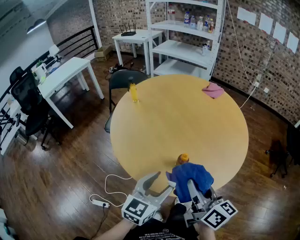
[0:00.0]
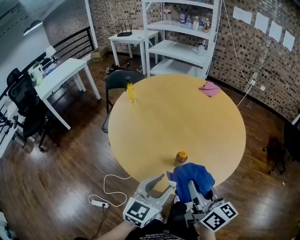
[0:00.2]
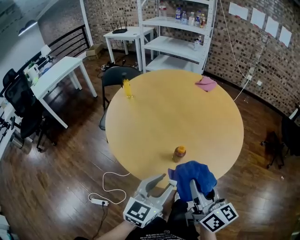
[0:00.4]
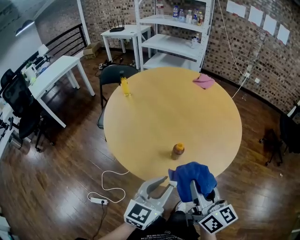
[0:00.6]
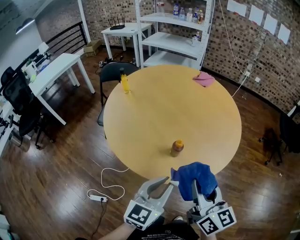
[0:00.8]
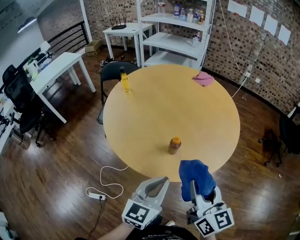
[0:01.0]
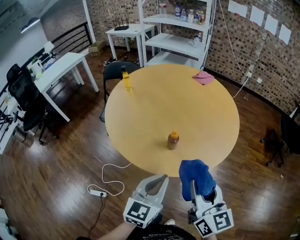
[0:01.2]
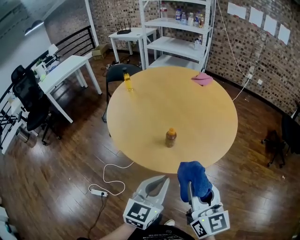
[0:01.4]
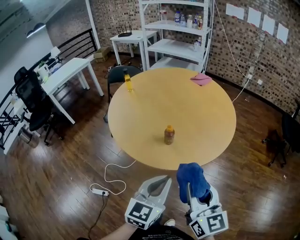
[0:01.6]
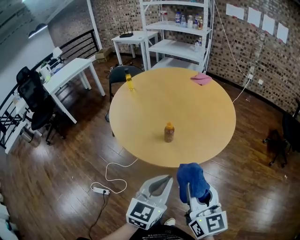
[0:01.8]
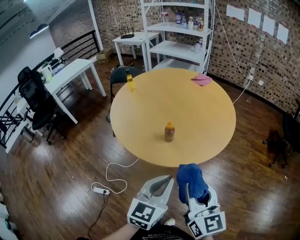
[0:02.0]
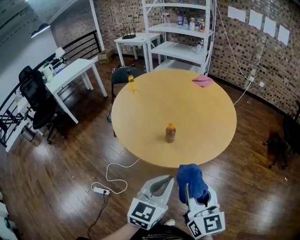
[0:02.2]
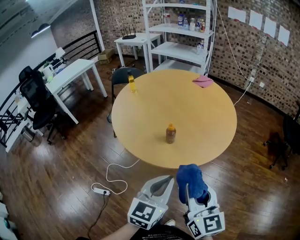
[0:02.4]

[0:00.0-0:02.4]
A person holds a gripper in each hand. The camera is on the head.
0:00.0 to 0:01.2: The two grippers go some 10 cm backward and to the right. The right gripper turns by roughly 30 degrees; the left gripper closes up.
0:01.2 to 0:02.4: The right gripper is displaced backward by some 10 cm; the left gripper heads backward and to the right, covering about 10 cm.

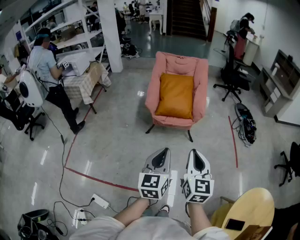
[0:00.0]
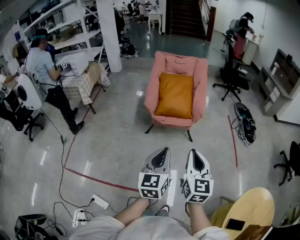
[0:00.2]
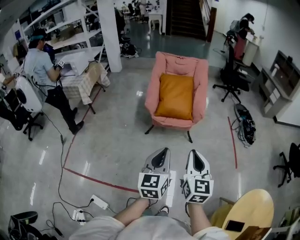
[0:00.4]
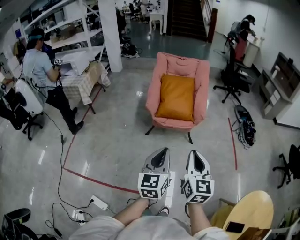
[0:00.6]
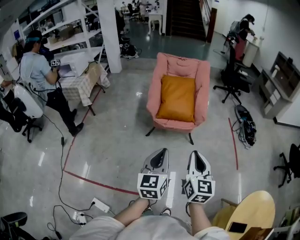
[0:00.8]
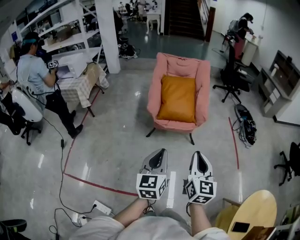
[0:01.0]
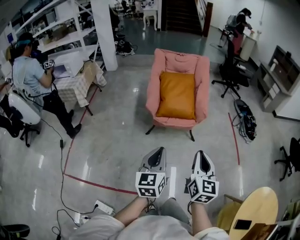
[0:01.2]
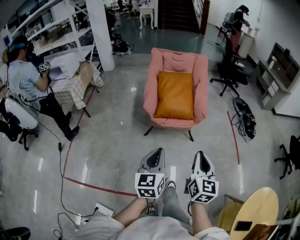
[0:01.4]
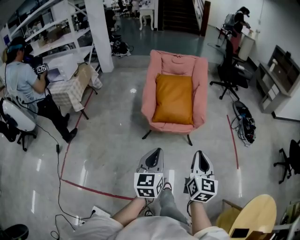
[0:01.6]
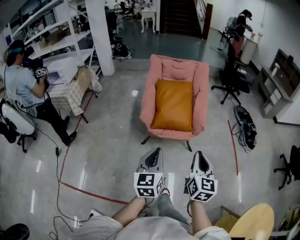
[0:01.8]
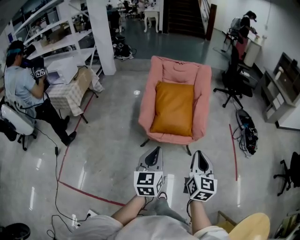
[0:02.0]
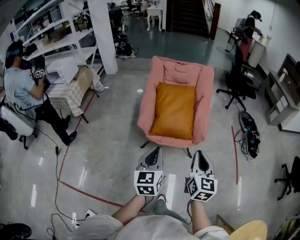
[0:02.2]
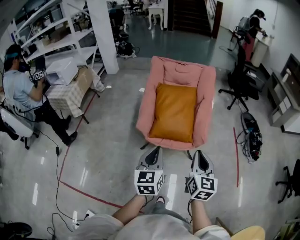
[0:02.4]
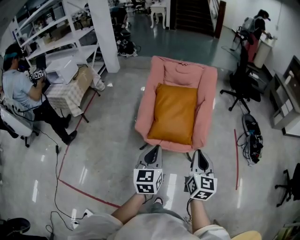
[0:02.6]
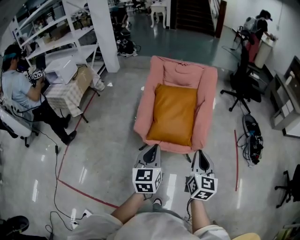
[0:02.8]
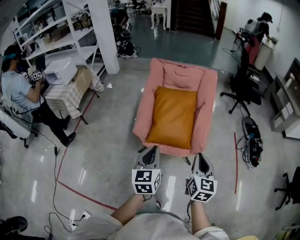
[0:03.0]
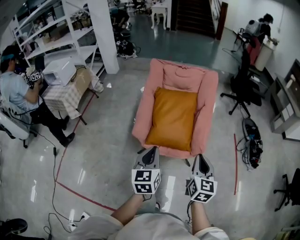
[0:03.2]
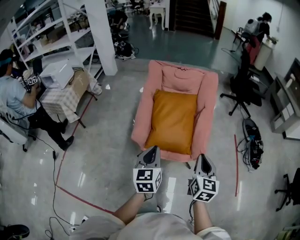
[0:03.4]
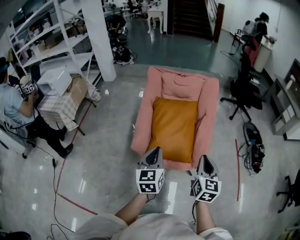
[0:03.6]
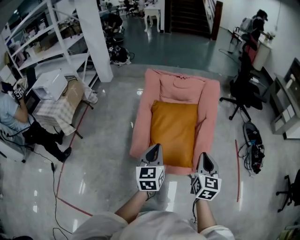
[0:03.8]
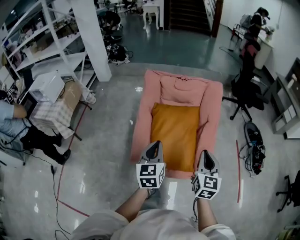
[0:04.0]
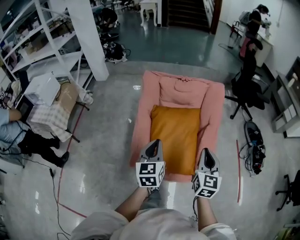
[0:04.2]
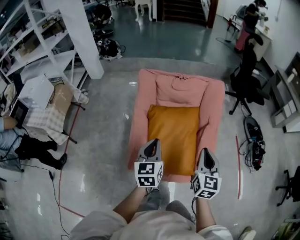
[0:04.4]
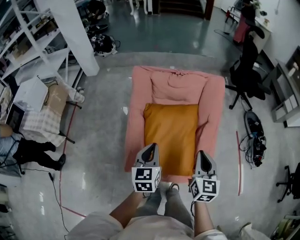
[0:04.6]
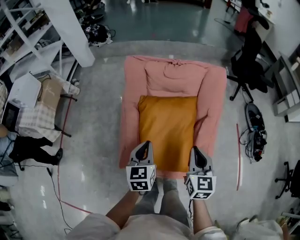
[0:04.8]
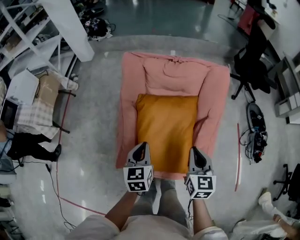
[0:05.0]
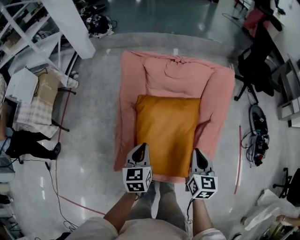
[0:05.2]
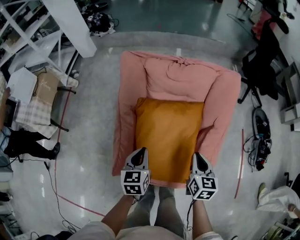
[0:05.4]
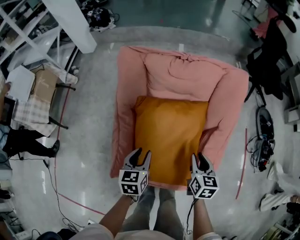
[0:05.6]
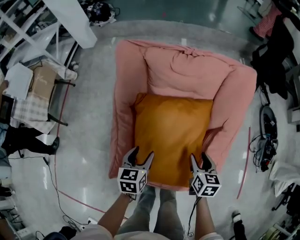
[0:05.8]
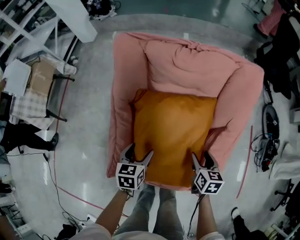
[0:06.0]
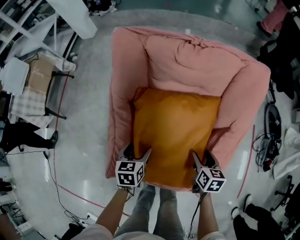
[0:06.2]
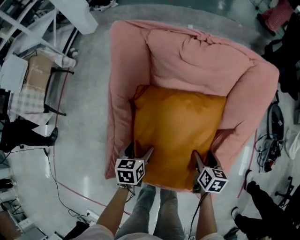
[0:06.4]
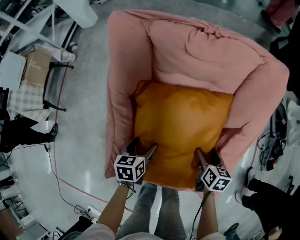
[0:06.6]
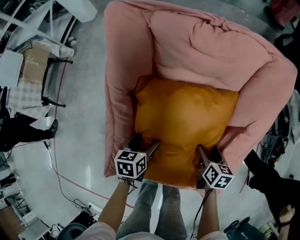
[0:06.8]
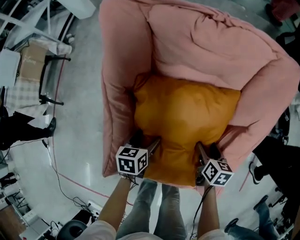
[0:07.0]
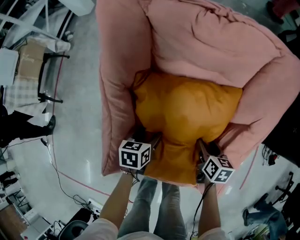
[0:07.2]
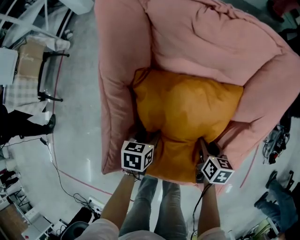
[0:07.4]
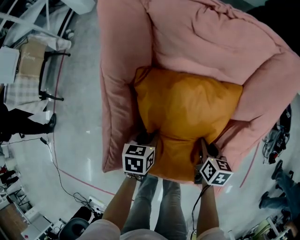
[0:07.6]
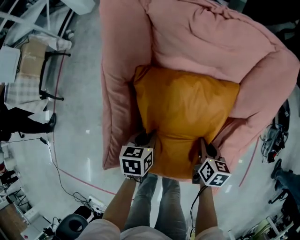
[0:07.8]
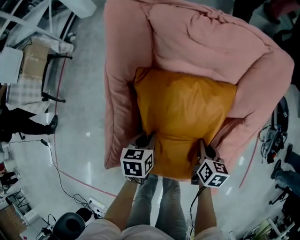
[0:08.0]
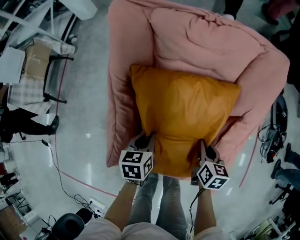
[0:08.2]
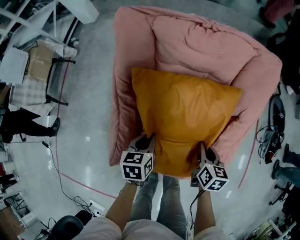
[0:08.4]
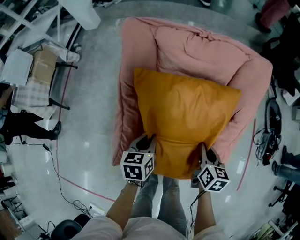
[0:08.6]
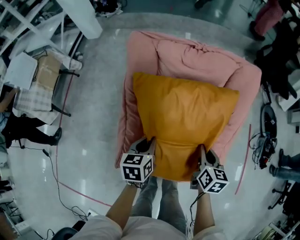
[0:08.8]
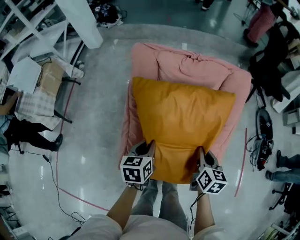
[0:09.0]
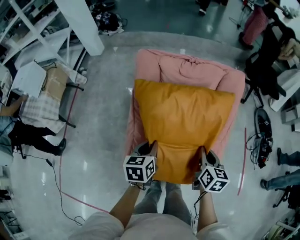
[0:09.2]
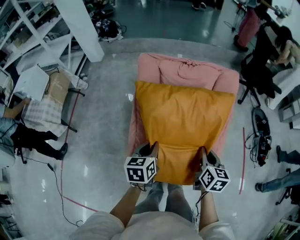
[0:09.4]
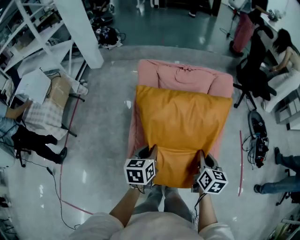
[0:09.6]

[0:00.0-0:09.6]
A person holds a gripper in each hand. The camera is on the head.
0:00.0 to 0:01.6: The left gripper shifts some 15 cm forward and to the left. The right gripper heads forward, covering some 15 cm.
0:01.6 to 0:03.2: The grippers both shift forward by roughly 30 cm.
0:03.2 to 0:04.8: Both grippers travel together forward, roughly 35 cm.
0:04.8 to 0:06.4: The two grippers go approximately 30 cm downward. The right gripper changes its angle by approximately 40 degrees, and opens its fingers. The left gripper changes its angle by some 30 degrees, and opens up.
0:06.4 to 0:08.0: The right gripper closes its fingers, while the left gripper reaches some 10 cm downward, then returns, and closes its fingers.
0:08.0 to 0:09.6: Both grippers move upward and backward, approximately 30 cm. The right gripper rotates some 20 degrees.

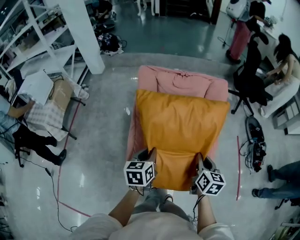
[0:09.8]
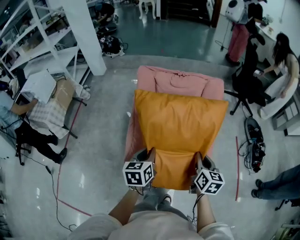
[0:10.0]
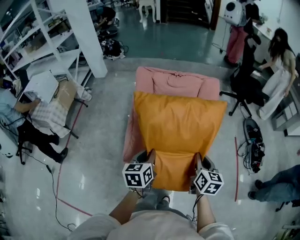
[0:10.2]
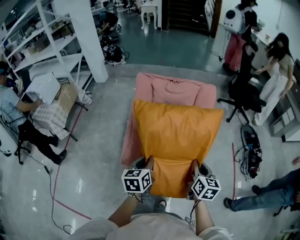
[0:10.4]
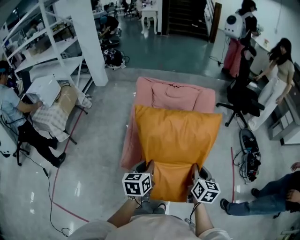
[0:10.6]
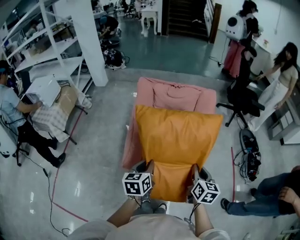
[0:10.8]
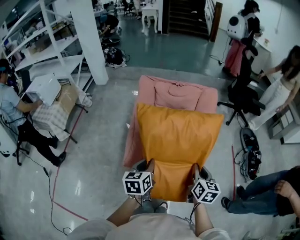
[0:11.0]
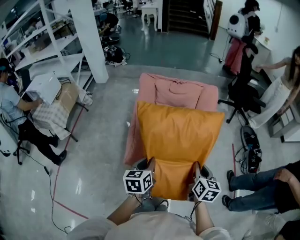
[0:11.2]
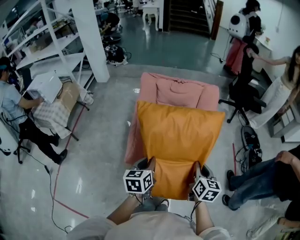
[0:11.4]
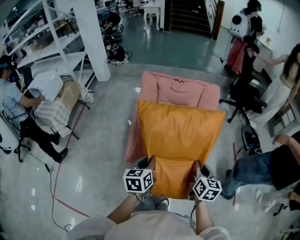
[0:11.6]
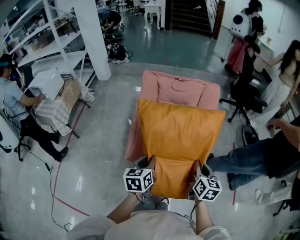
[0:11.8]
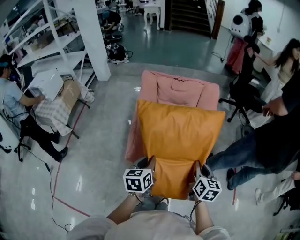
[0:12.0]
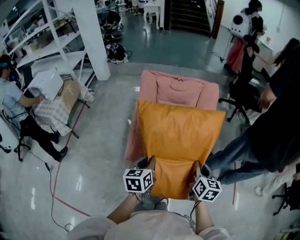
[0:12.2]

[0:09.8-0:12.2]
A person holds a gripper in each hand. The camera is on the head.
0:09.8 to 0:11.0: The two grippers go about 10 cm backward.
0:11.0 to 0:12.2: The grippers stay close to where they were, moving slightly.

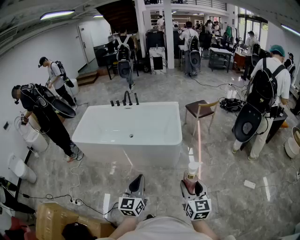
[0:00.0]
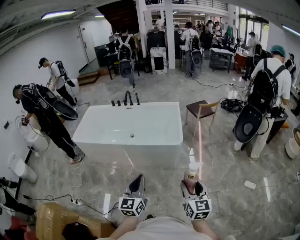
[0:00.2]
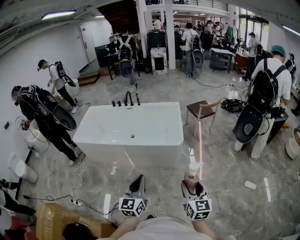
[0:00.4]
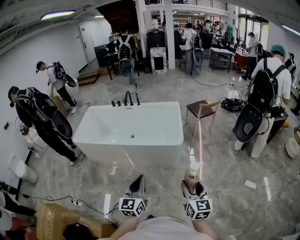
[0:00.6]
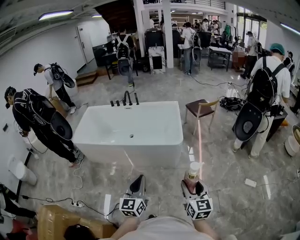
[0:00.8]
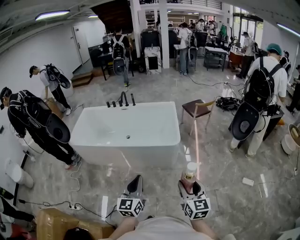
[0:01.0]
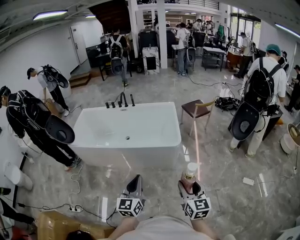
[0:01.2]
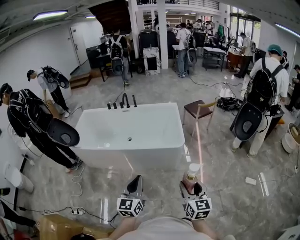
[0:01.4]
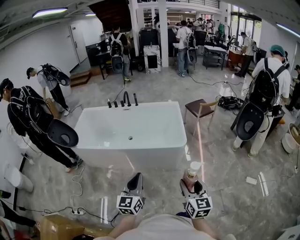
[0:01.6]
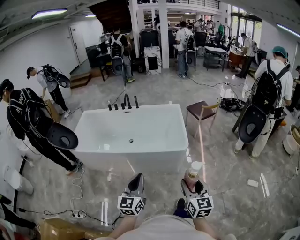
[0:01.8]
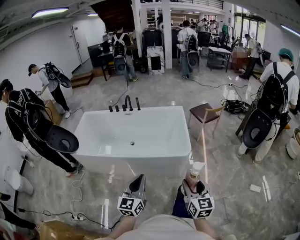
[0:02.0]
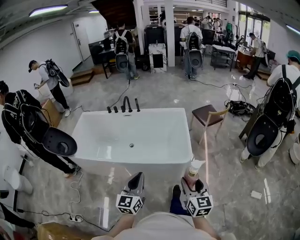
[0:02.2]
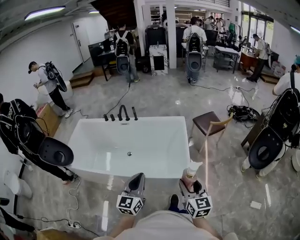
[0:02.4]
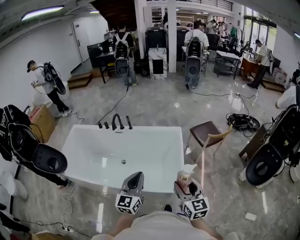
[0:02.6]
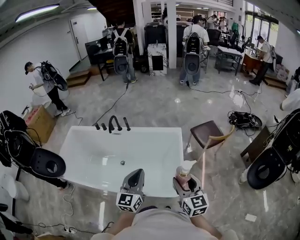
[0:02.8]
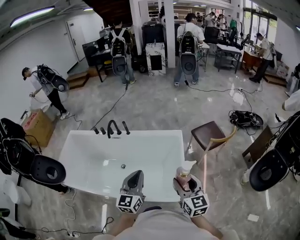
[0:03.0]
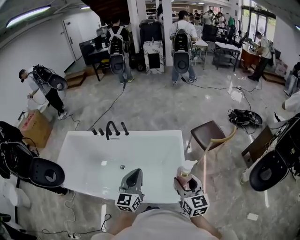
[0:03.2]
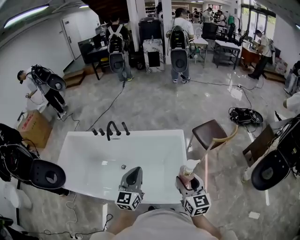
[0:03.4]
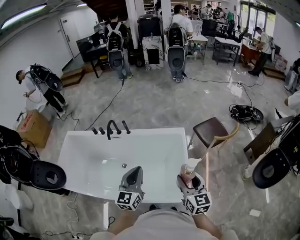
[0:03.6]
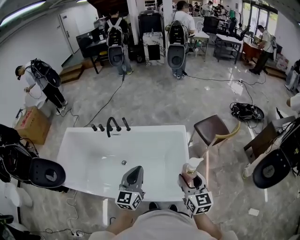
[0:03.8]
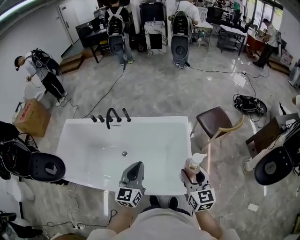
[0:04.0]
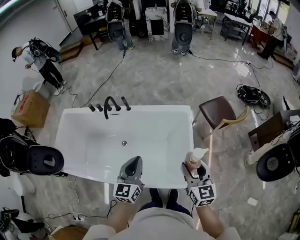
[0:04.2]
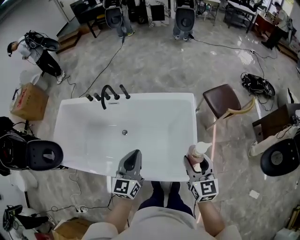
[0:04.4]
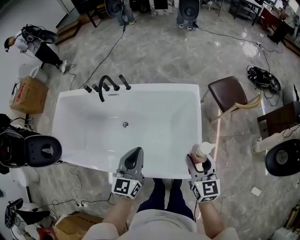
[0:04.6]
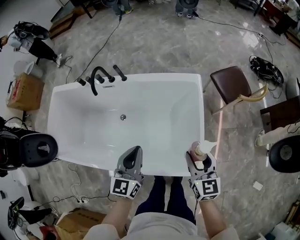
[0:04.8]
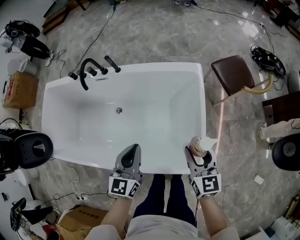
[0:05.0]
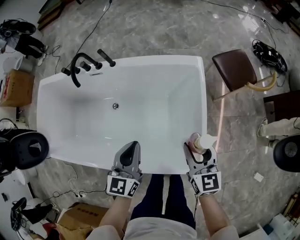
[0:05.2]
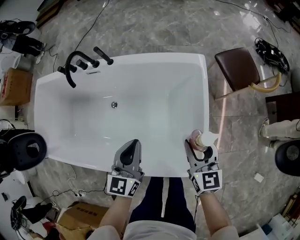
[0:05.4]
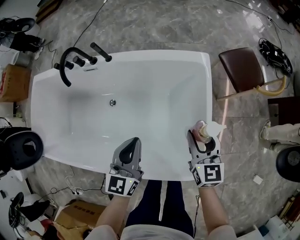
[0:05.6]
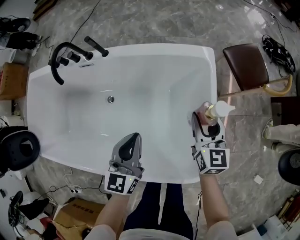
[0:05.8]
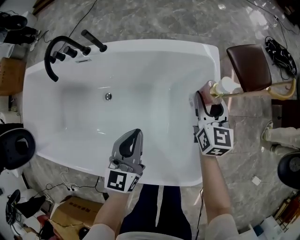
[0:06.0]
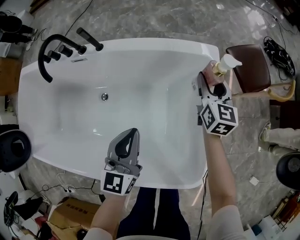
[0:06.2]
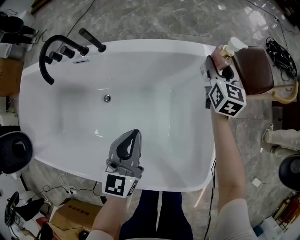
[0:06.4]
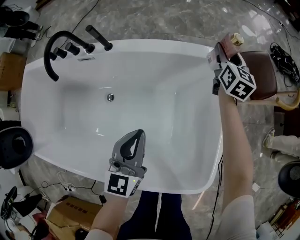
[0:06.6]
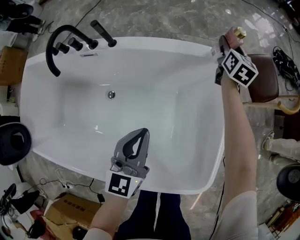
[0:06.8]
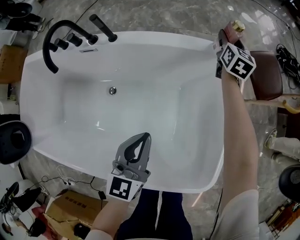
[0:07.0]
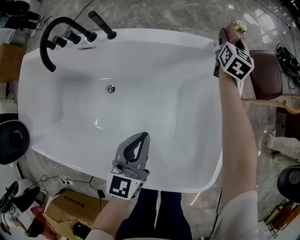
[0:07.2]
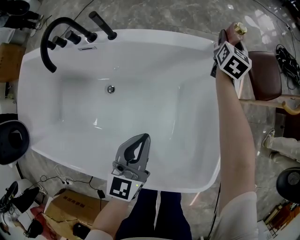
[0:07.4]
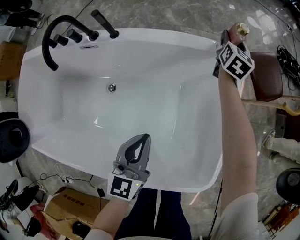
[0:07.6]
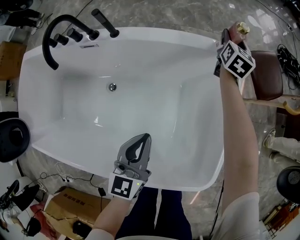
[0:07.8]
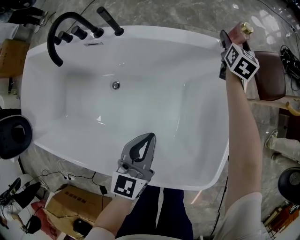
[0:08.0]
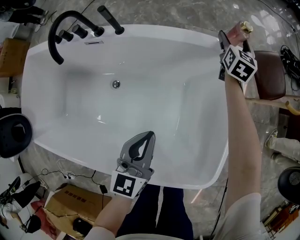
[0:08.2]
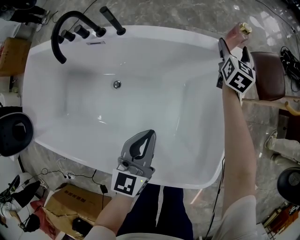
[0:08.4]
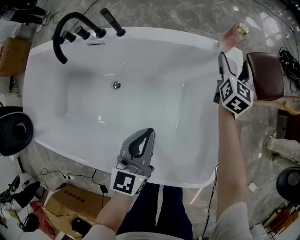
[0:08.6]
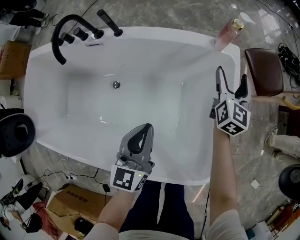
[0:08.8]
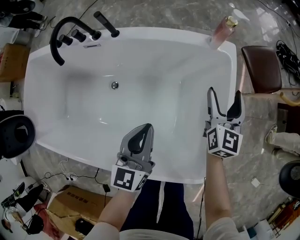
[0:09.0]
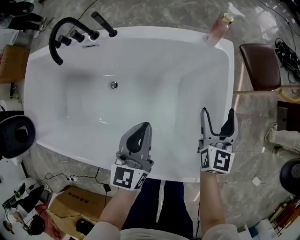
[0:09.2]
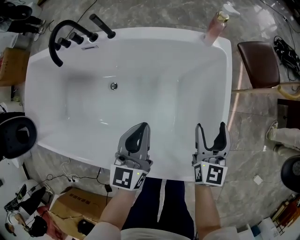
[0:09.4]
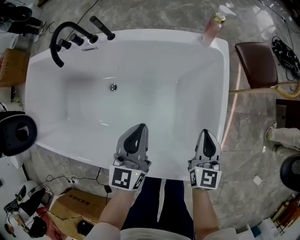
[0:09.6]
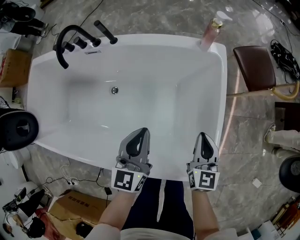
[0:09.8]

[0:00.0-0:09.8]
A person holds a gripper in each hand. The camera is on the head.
0:00.0 to 0:01.4: The left gripper moves to the left and forward, some 10 cm, while the right gripper heads to the left, covering about 5 cm.
0:01.4 to 0:02.8: The two grippers travel together, forward, some 60 cm.
0:02.8 to 0:04.2: The right gripper moves forward, approximately 15 cm; the left gripper travels forward, downward and to the left by roughly 15 cm.
0:04.2 to 0:05.6: The grippers both shift downward and forward by approximately 30 cm.
0:05.6 to 0:07.0: The right gripper moves forward, roughly 40 cm. Meanwhile the left gripper travels downward by roughly 10 cm.
0:07.0 to 0:08.4: The right gripper shifts some 5 cm backward, and opens up.
0:08.4 to 0:09.8: The right gripper shifts approximately 40 cm backward, and closes.
